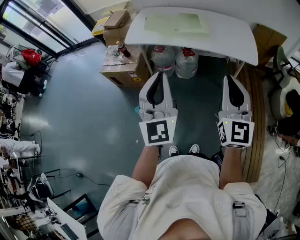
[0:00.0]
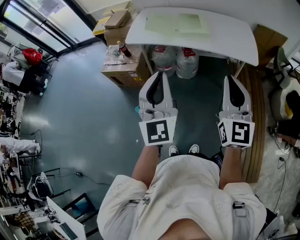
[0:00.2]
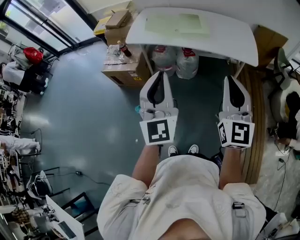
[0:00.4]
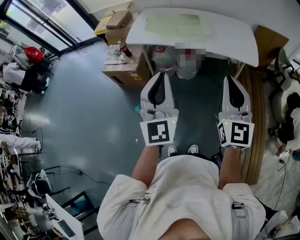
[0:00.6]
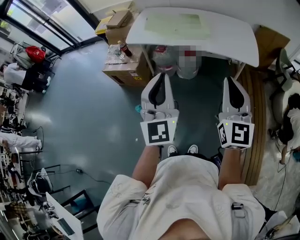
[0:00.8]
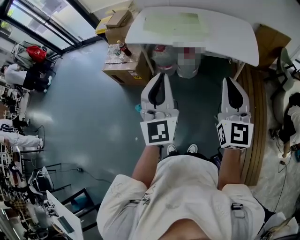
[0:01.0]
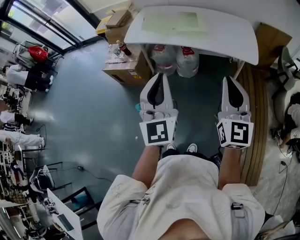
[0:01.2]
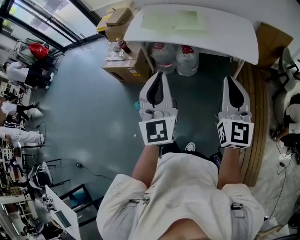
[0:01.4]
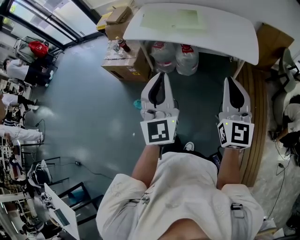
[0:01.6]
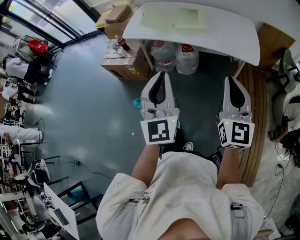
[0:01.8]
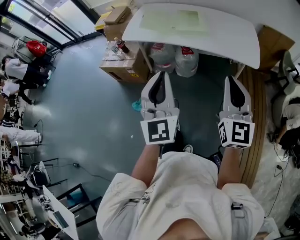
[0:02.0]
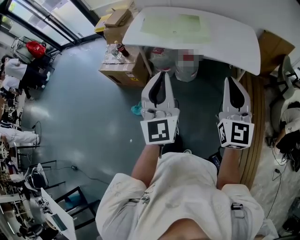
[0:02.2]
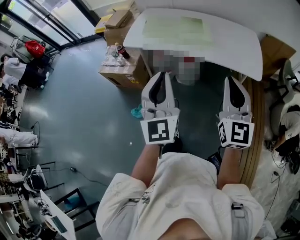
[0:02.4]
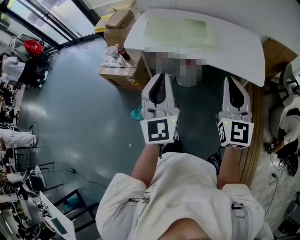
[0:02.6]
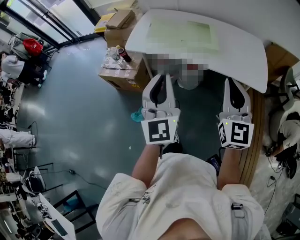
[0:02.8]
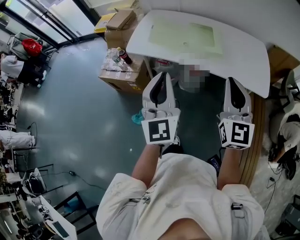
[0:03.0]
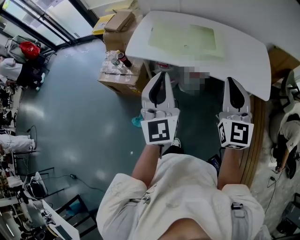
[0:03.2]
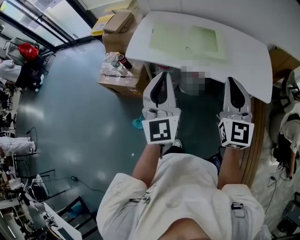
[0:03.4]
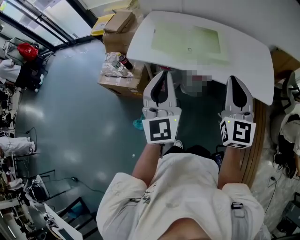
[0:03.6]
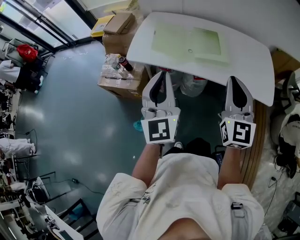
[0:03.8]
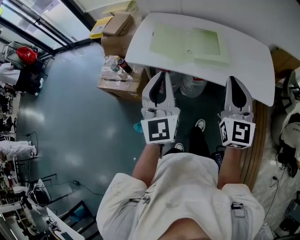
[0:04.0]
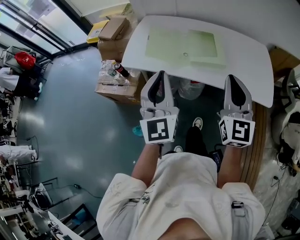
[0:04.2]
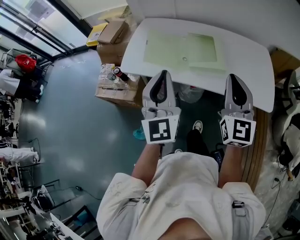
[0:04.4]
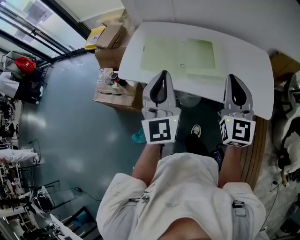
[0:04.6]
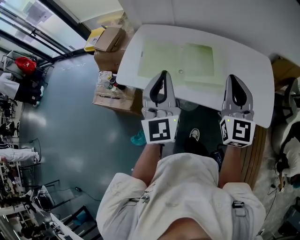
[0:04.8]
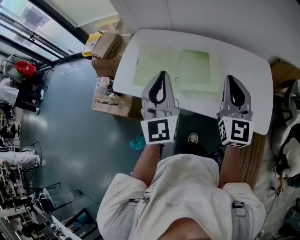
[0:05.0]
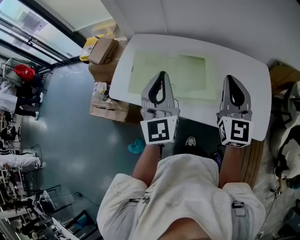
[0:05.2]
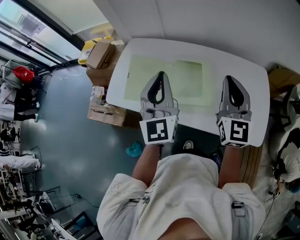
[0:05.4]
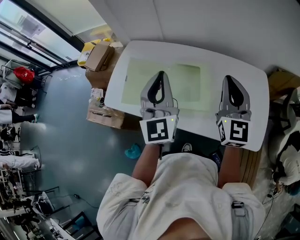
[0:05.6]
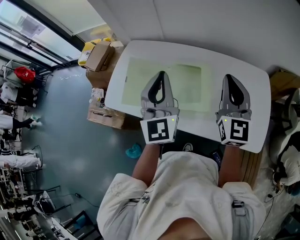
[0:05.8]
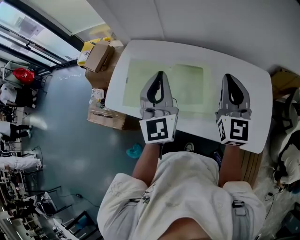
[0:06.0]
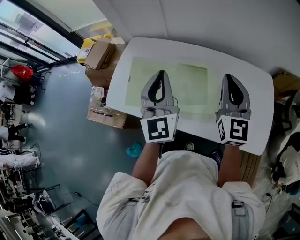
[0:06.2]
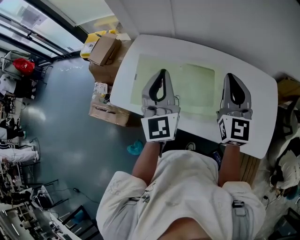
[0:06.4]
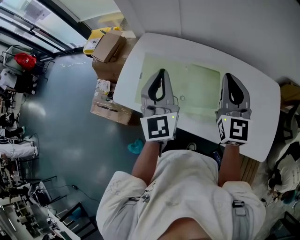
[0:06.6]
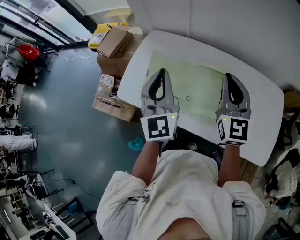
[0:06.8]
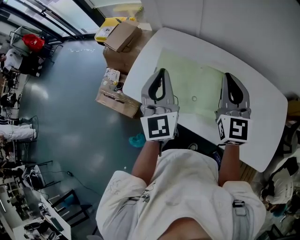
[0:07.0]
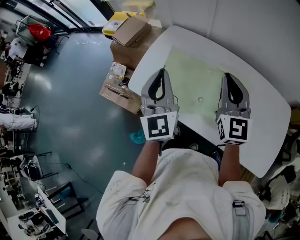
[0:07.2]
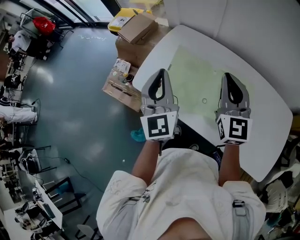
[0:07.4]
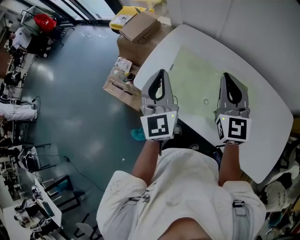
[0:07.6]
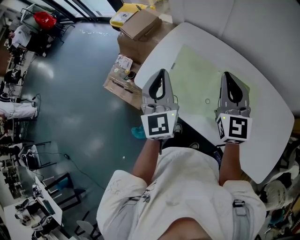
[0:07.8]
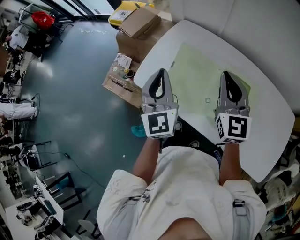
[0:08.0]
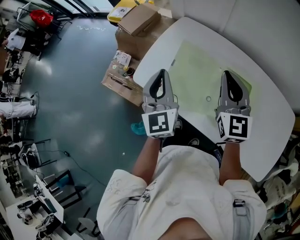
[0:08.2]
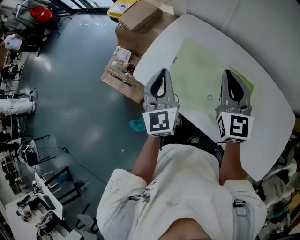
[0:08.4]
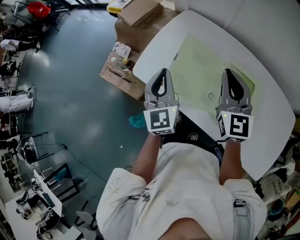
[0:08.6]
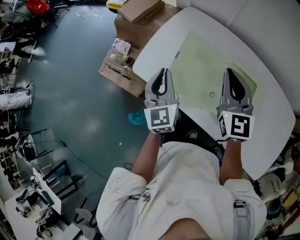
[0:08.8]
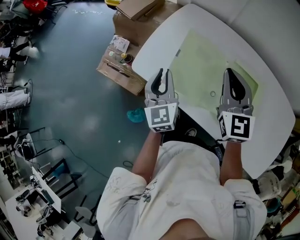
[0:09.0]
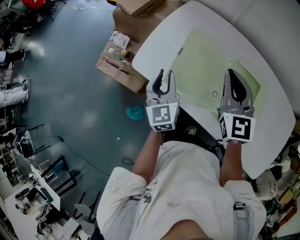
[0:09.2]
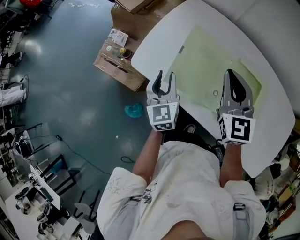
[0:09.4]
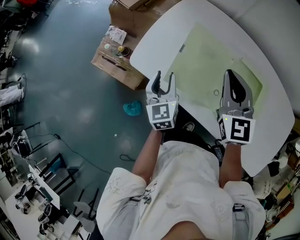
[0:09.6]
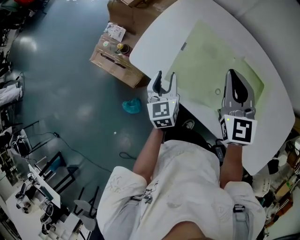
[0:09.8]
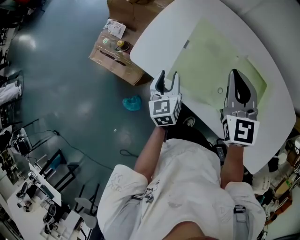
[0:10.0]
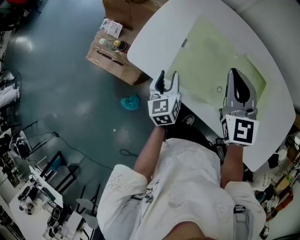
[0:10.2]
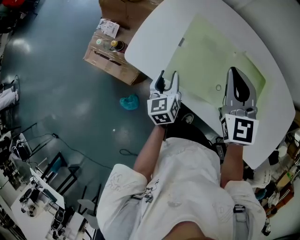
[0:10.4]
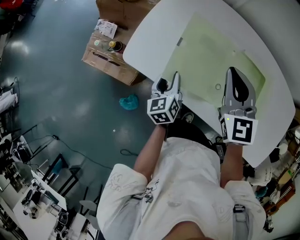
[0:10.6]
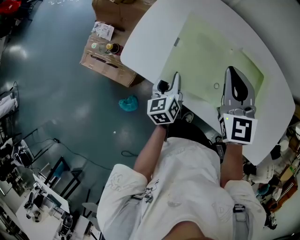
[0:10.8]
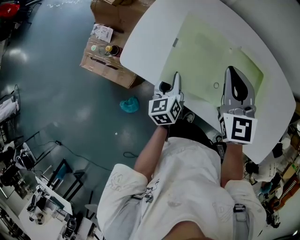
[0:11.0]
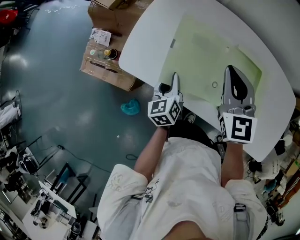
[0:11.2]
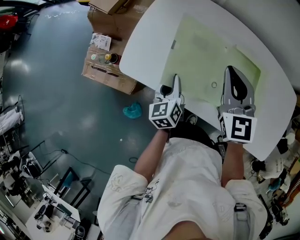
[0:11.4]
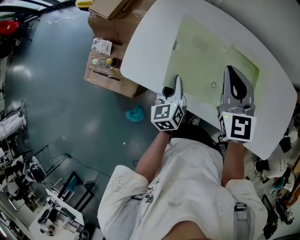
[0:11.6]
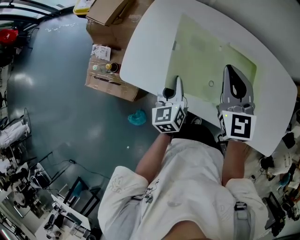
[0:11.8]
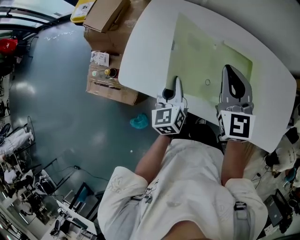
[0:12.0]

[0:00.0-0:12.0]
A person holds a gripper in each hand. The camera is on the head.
0:00.0 to 0:01.6: Both grippers move to the right, approximately 10 cm.
0:01.6 to 0:03.0: The left gripper is displaced forward and to the left by roughly 25 cm; the right gripper is displaced forward by about 25 cm.
0:03.0 to 0:04.4: Both grippers move forward, about 15 cm.
0:04.4 to 0:06.0: Both grippers travel together forward and to the right, some 30 cm.
0:06.0 to 0:07.6: The left gripper heads to the left, covering approximately 25 cm, and rotates approximately 20 degrees, while the right gripper is displaced to the left and forward by about 25 cm, and swivels about 20 degrees.
0:07.6 to 0:09.0: The right gripper shifts about 5 cm downward. The left gripper shifts some 15 cm downward.
0:09.0 to 0:10.4: The right gripper shifts approximately 5 cm downward, while the left gripper moves downward, approximately 15 cm, changes its angle by approximately 30 degrees, and opens its fingers.
0:10.4 to 0:12.0: The left gripper travels upward and to the right by approximately 10 cm, and closes its fingers, while the right gripper moves to the right, approximately 5 cm.

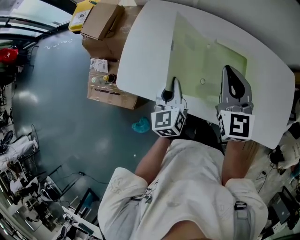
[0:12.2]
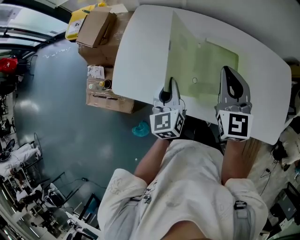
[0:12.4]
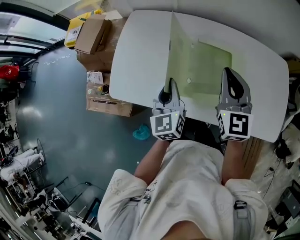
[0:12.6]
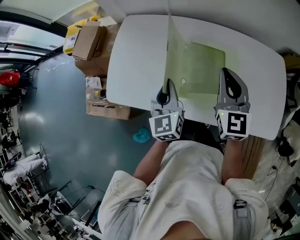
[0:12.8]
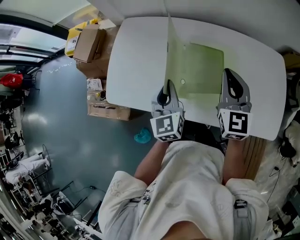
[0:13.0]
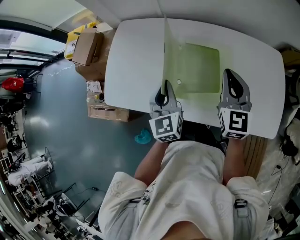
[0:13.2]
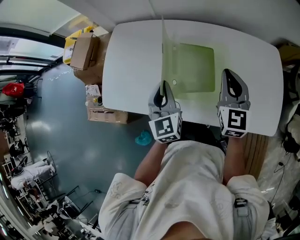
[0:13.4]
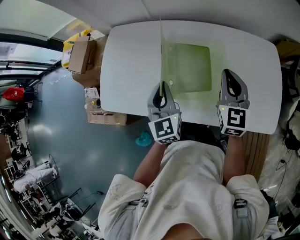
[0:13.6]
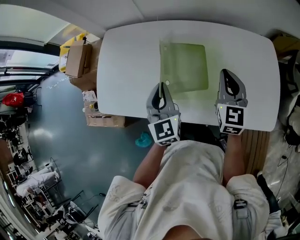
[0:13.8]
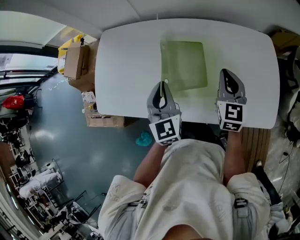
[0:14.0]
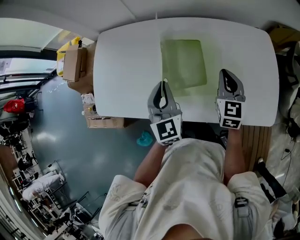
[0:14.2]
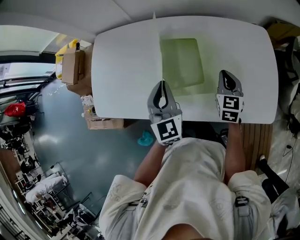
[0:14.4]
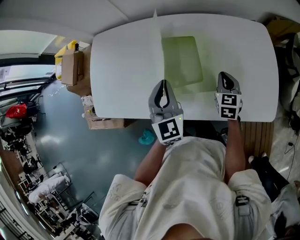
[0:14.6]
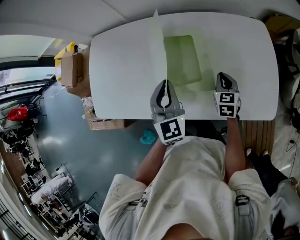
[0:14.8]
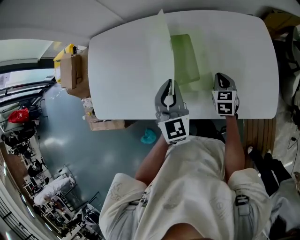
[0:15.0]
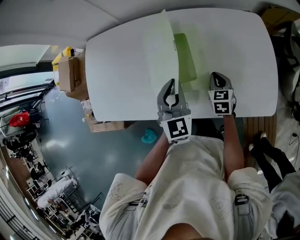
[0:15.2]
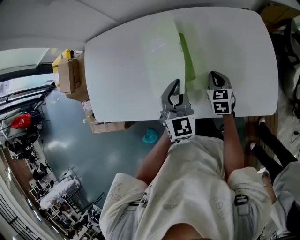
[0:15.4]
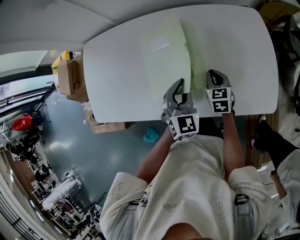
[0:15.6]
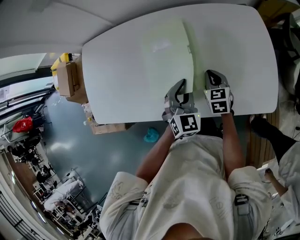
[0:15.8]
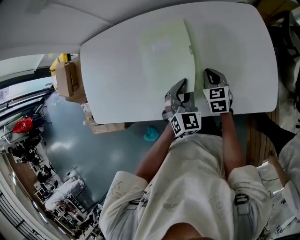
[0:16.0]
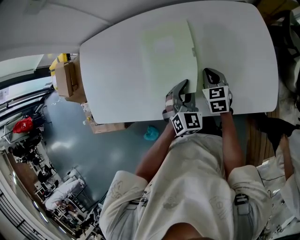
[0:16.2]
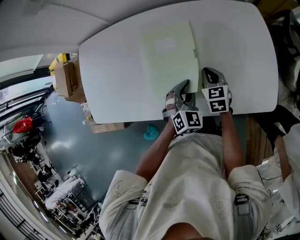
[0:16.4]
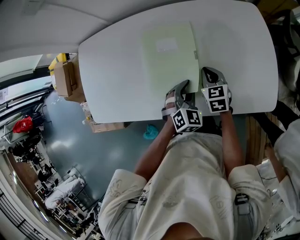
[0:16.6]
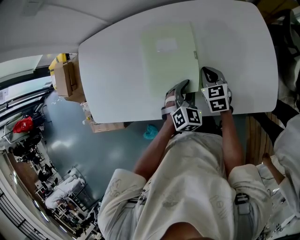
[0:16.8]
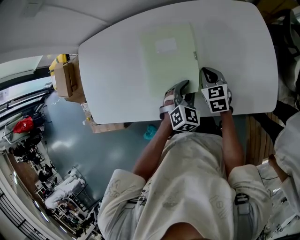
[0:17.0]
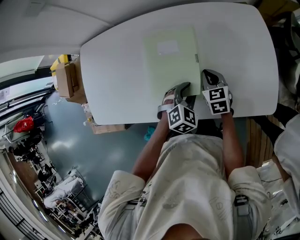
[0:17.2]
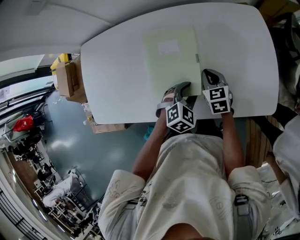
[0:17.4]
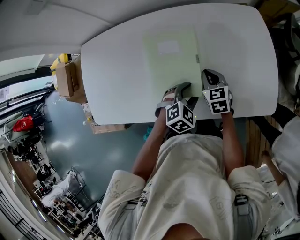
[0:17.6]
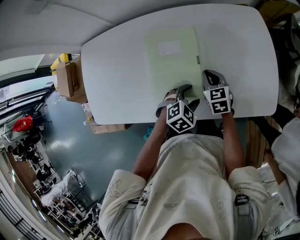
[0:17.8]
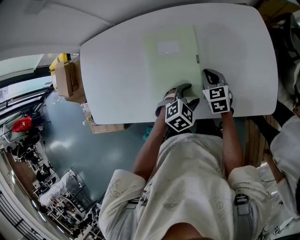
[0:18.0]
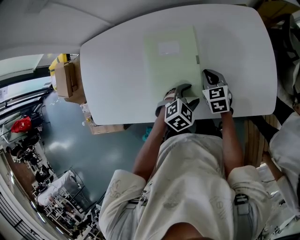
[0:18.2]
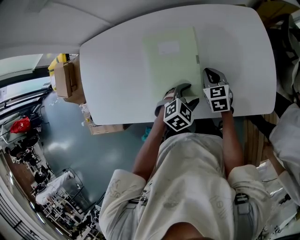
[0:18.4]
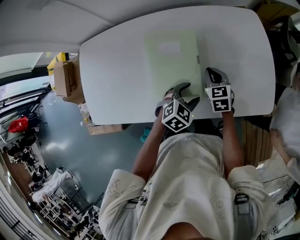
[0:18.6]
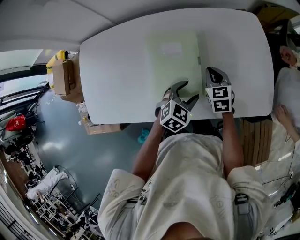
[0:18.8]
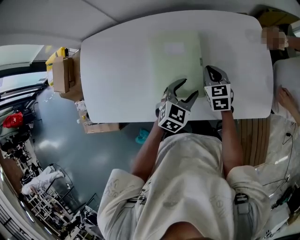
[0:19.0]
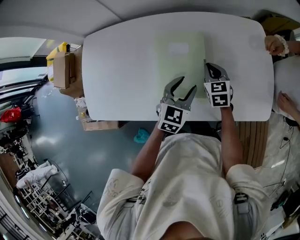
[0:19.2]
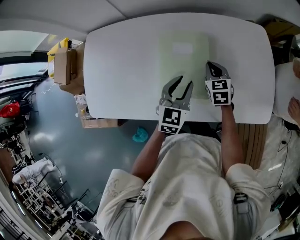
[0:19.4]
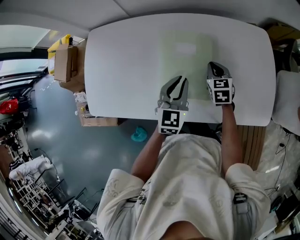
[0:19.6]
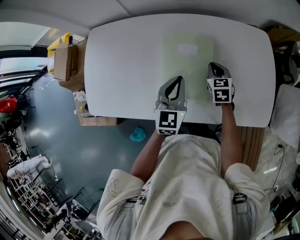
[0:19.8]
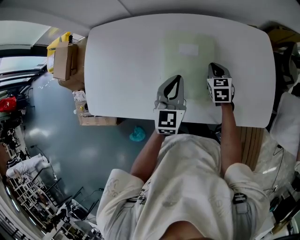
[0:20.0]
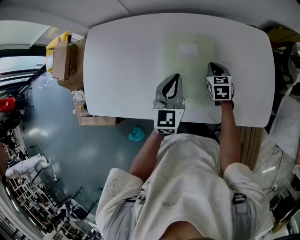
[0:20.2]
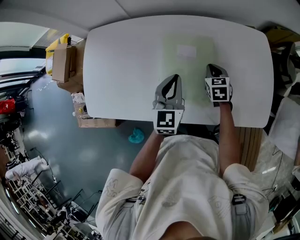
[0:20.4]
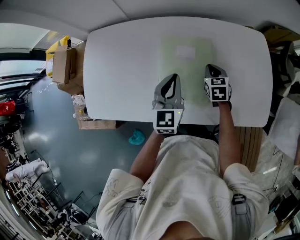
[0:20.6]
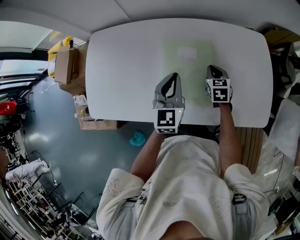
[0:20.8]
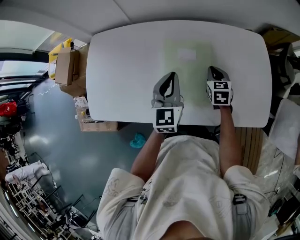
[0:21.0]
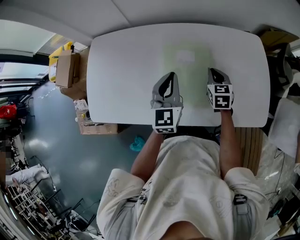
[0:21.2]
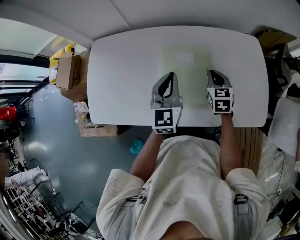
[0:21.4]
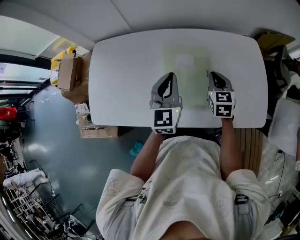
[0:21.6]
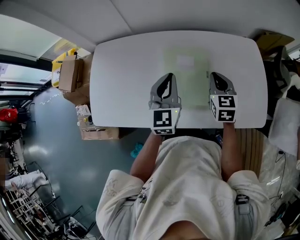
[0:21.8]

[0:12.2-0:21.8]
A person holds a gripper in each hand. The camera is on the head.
0:12.2 to 0:13.8: Both grippers travel together to the right, roughly 25 cm. The left gripper turns by approximately 30 degrees.
0:13.8 to 0:15.4: The right gripper moves downward, roughly 20 cm, and rotates roughly 30 degrees; the left gripper shifts about 15 cm to the right, and swivels some 30 degrees.
0:15.4 to 0:17.0: The left gripper moves downward and to the right, roughly 15 cm, and rotates roughly 30 degrees.
0:17.0 to 0:18.6: The left gripper changes its angle by roughly 20 degrees, and opens.
0:18.6 to 0:20.2: The left gripper shifts roughly 20 cm to the left, upward and forward, tilts its fingers about 30 degrees upward, and closes up. Meanwhile the right gripper changes place by some 5 cm.
0:20.2 to 0:21.8: The left gripper moves upward, some 10 cm. Meanwhile the right gripper heads upward, covering about 15 cm.

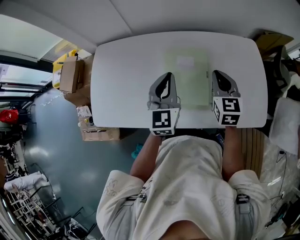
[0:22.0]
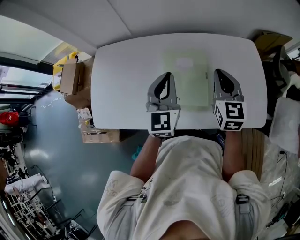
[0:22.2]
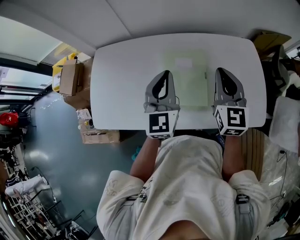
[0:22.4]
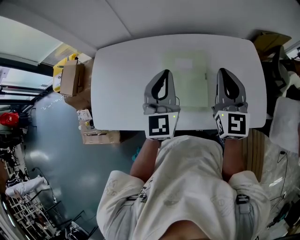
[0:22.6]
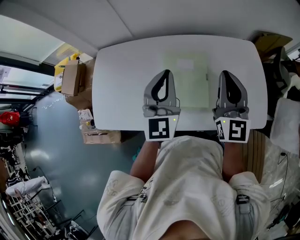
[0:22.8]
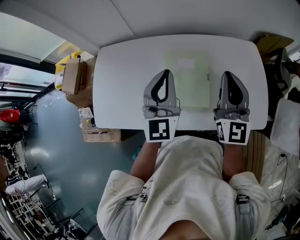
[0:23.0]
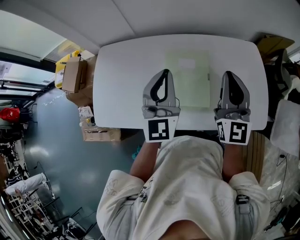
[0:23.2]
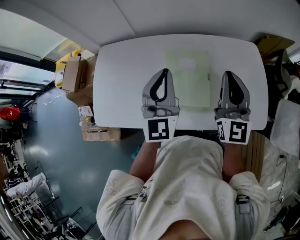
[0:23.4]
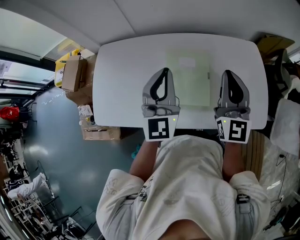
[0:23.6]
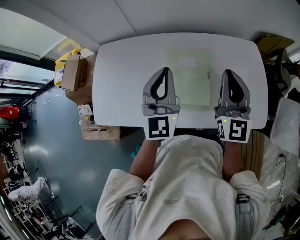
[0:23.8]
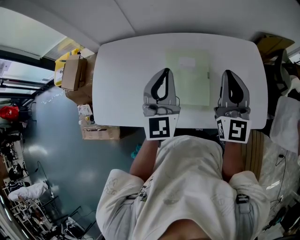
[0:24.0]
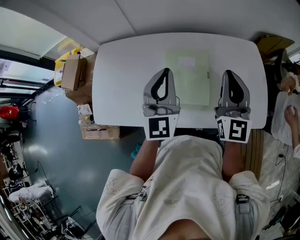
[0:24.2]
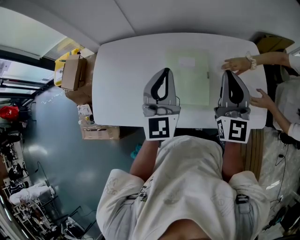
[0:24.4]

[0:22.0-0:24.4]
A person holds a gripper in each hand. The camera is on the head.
0:22.0 to 0:23.2: The left gripper travels upward by roughly 10 cm; the right gripper heads upward, covering some 15 cm, and points its fingers about 30 degrees further upward.
0:23.2 to 0:24.4: Neither gripper changes place.
